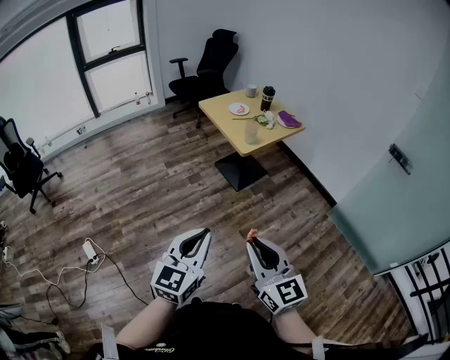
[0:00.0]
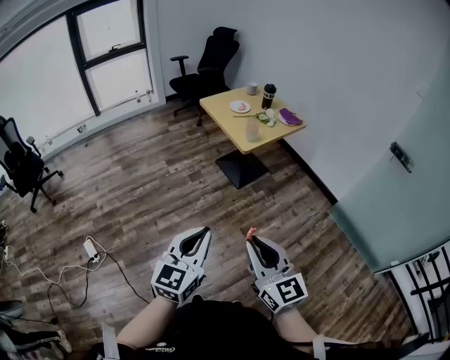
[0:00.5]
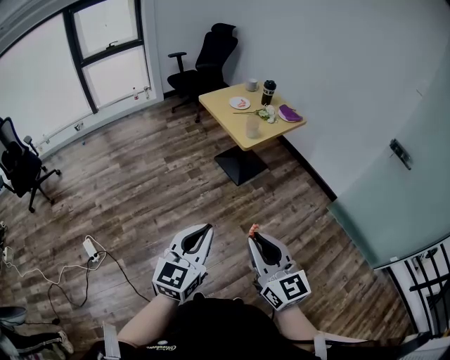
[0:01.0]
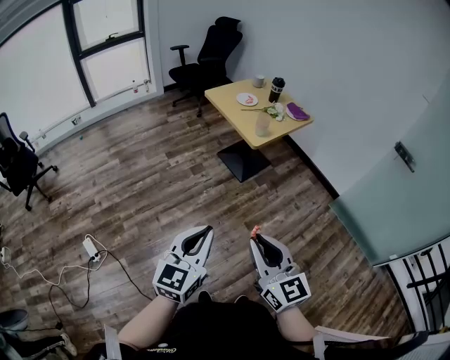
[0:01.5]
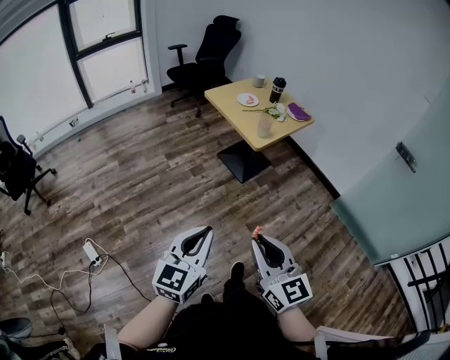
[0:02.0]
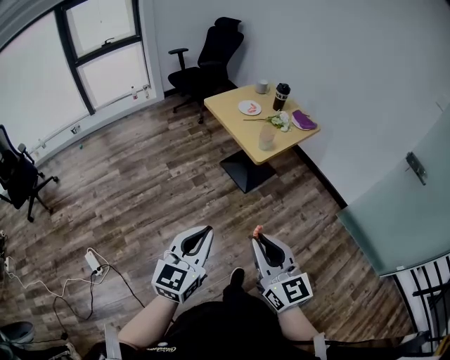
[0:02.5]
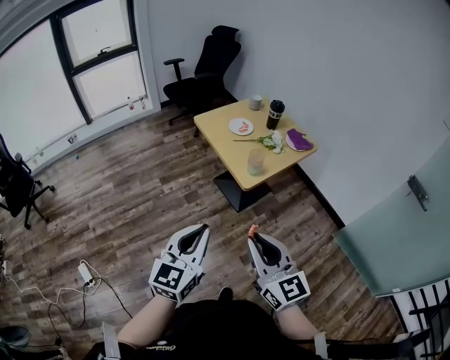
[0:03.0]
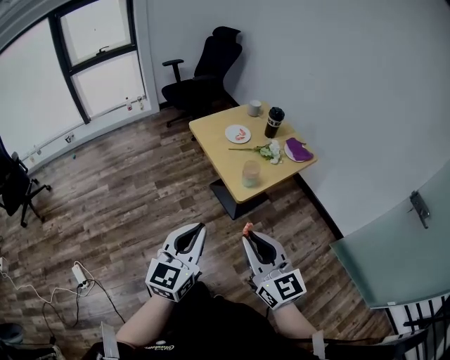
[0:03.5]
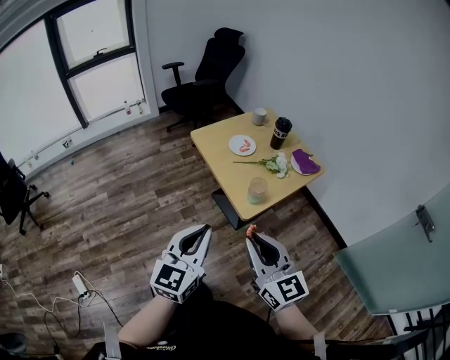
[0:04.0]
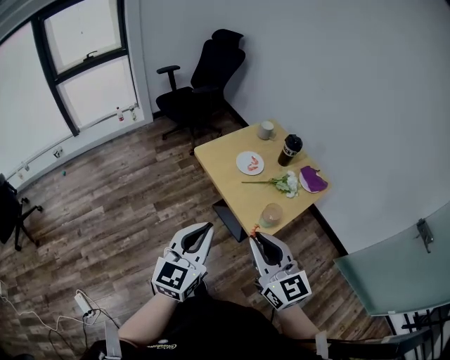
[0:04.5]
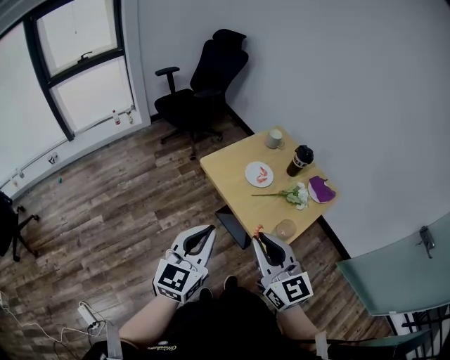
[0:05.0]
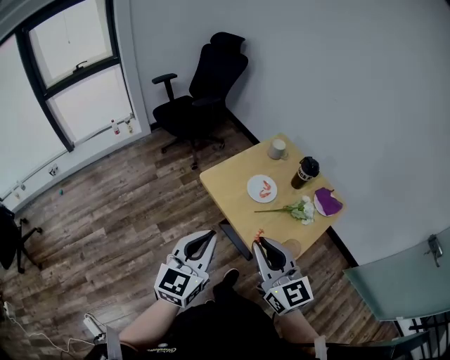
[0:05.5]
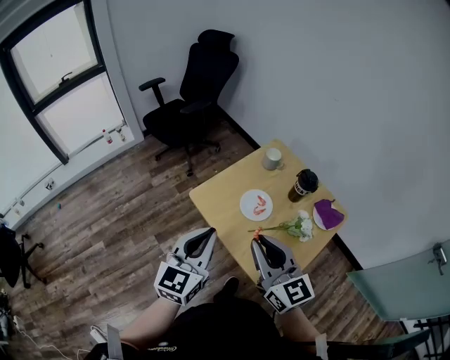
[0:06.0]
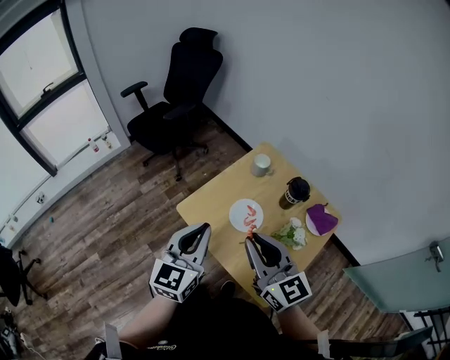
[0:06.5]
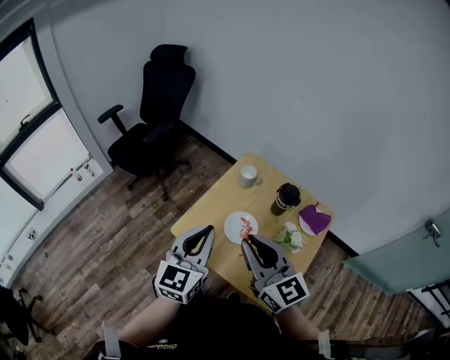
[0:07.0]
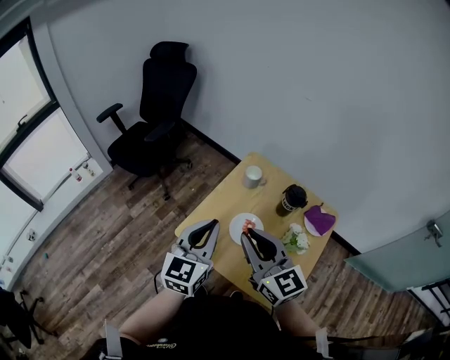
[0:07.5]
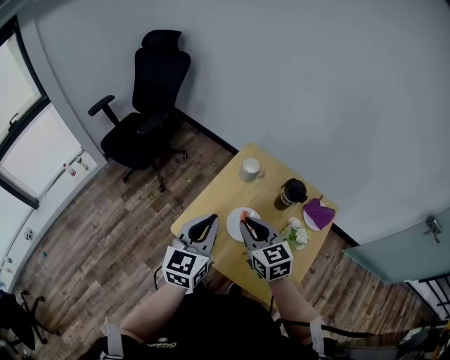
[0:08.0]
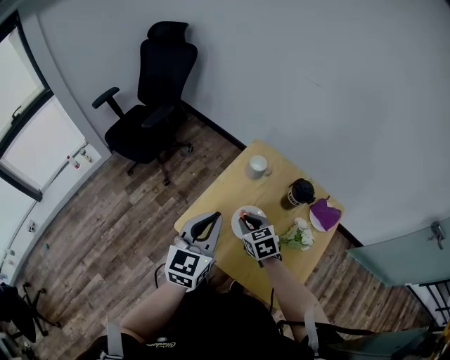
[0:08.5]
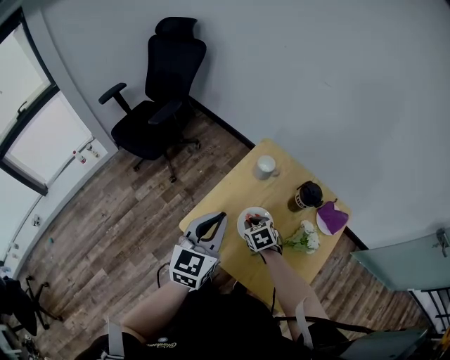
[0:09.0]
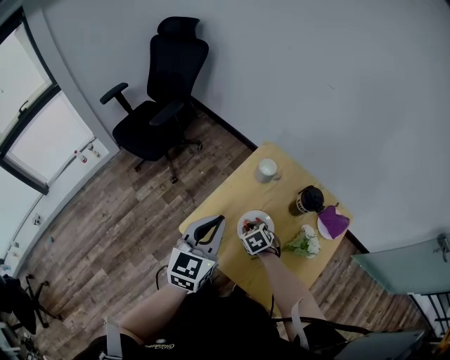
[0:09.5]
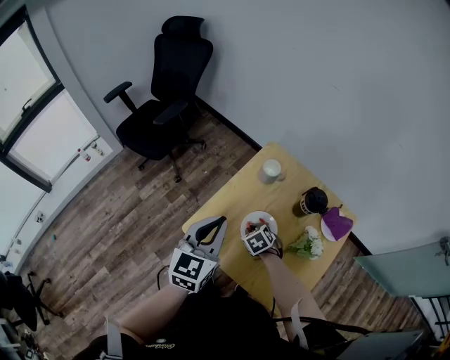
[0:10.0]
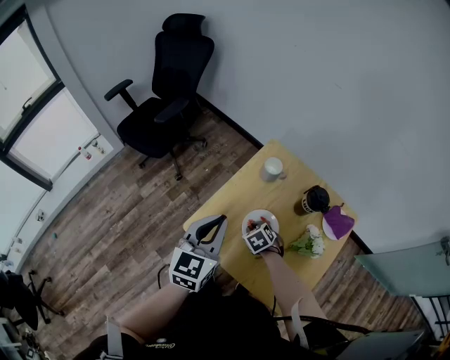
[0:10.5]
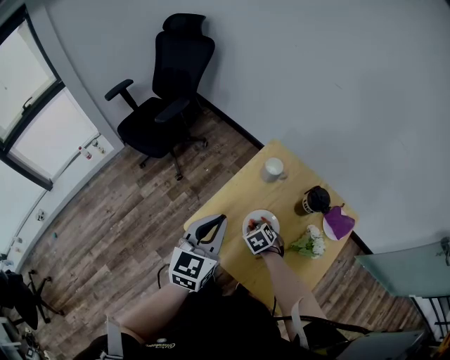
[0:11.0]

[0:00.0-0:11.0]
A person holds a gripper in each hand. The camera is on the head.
0:00.0 to 0:02.0: Both grippers travel together to the left, about 10 cm.
0:02.0 to 0:03.5: The right gripper is displaced forward by about 30 cm, while the left gripper travels forward and to the right by roughly 30 cm.
0:03.5 to 0:05.5: Both grippers travel together forward, some 35 cm.
0:05.5 to 0:07.5: The grippers both shift forward by approximately 30 cm.
0:07.5 to 0:09.0: The right gripper moves downward, roughly 30 cm, and points its fingers some 50 degrees further downward. Meanwhile the left gripper changes place by about 5 cm.
0:09.0 to 0:11.0: The grippers move only a little.

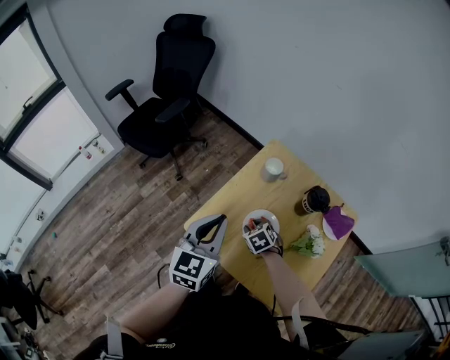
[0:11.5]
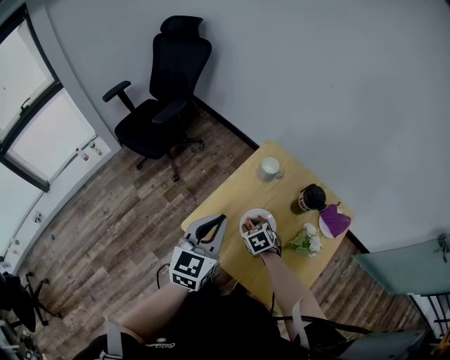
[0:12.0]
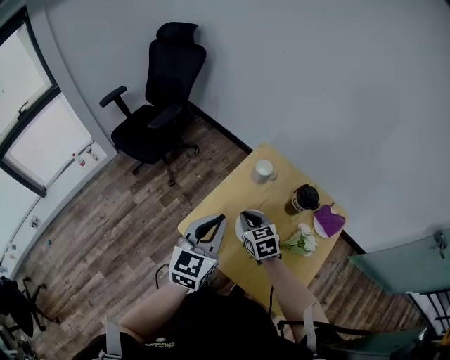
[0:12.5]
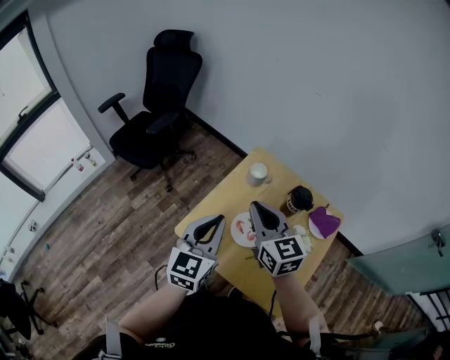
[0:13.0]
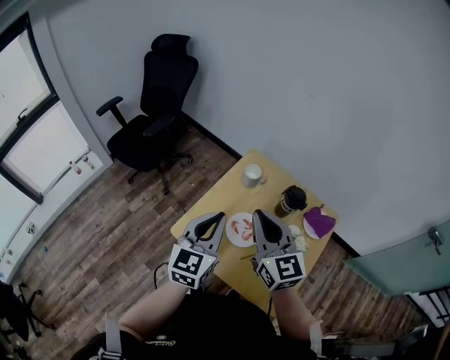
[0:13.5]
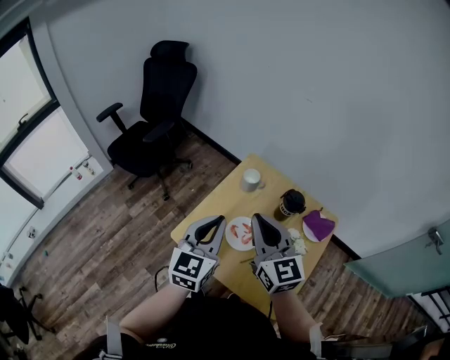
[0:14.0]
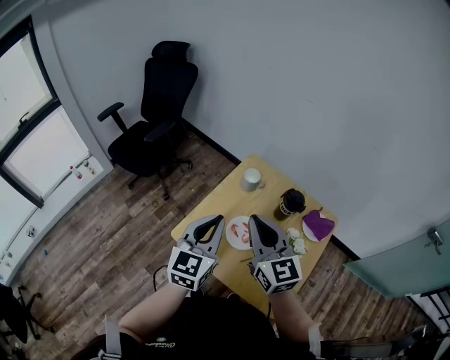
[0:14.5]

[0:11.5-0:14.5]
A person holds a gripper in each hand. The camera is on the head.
0:11.5 to 0:13.0: The right gripper travels upward by approximately 30 cm, angles its fingers upward, by approximately 50 degrees, and closes its fingers; the left gripper moves approximately 5 cm.
0:13.0 to 0:14.5: The right gripper shifts about 5 cm backward.

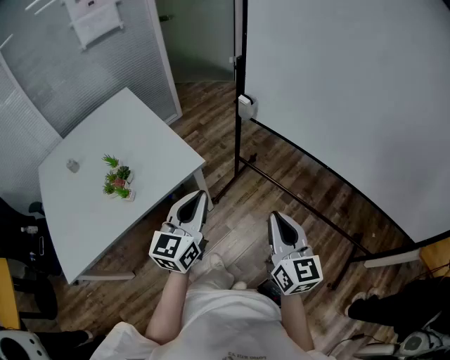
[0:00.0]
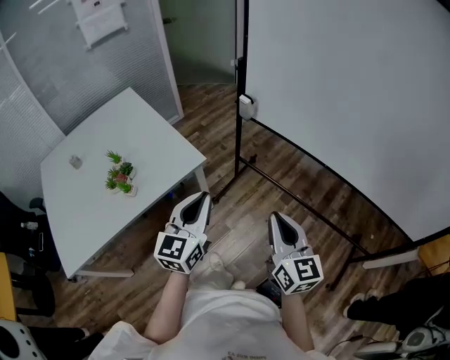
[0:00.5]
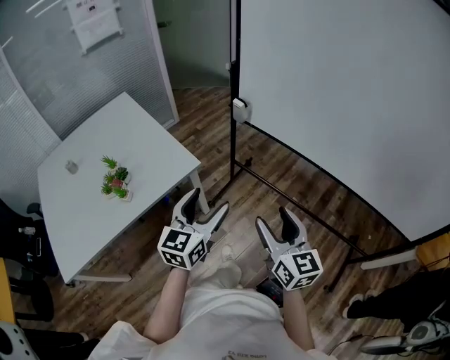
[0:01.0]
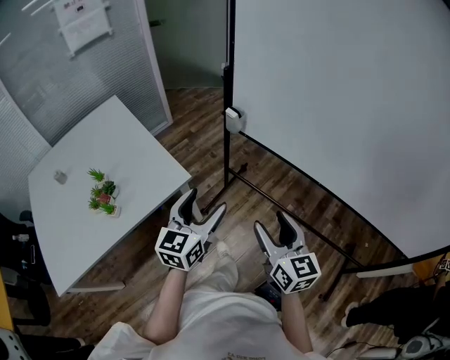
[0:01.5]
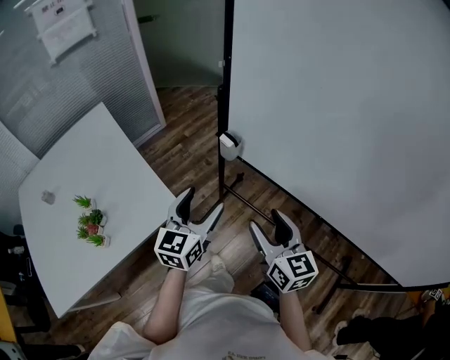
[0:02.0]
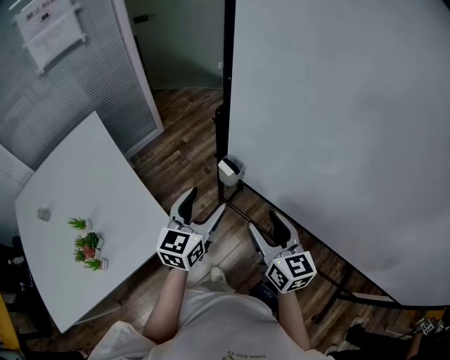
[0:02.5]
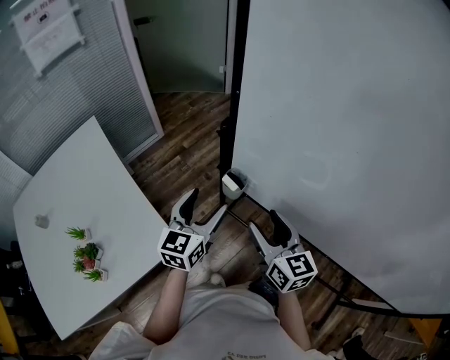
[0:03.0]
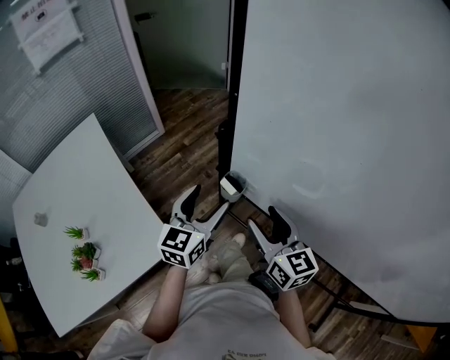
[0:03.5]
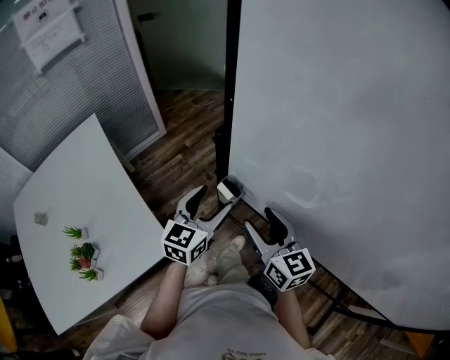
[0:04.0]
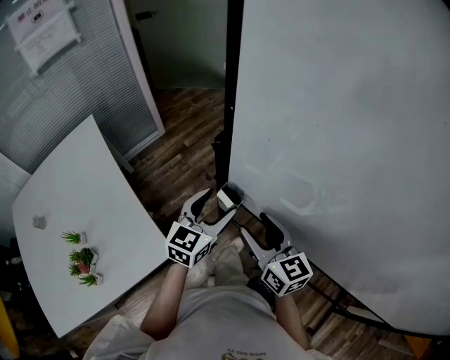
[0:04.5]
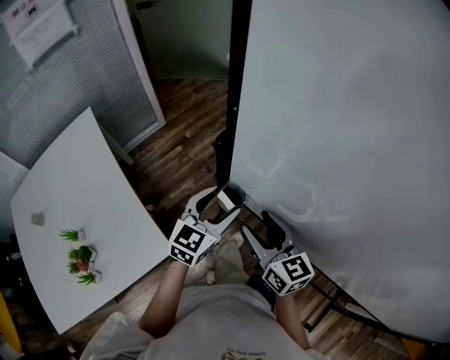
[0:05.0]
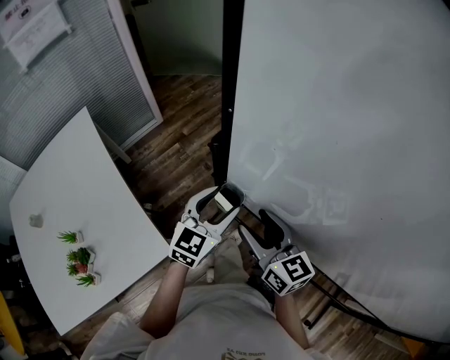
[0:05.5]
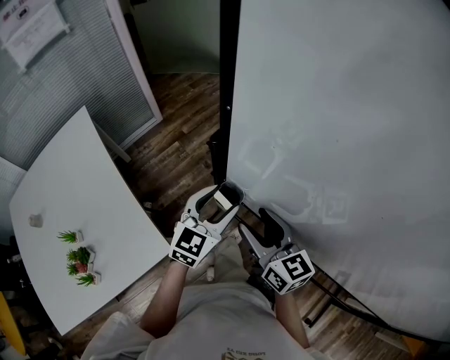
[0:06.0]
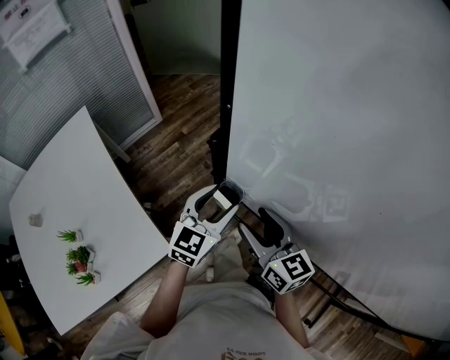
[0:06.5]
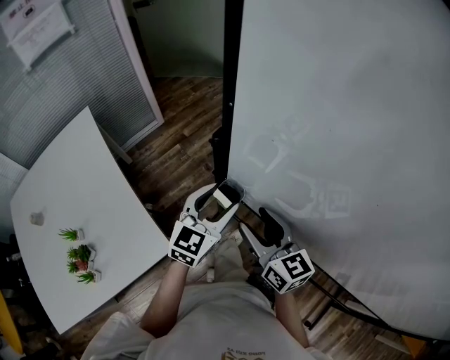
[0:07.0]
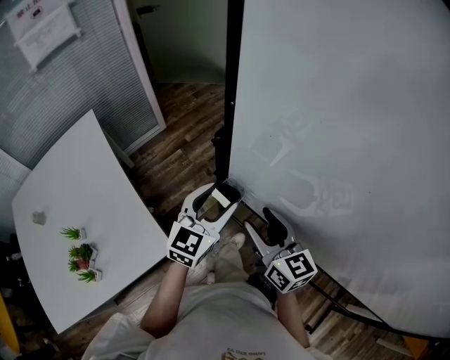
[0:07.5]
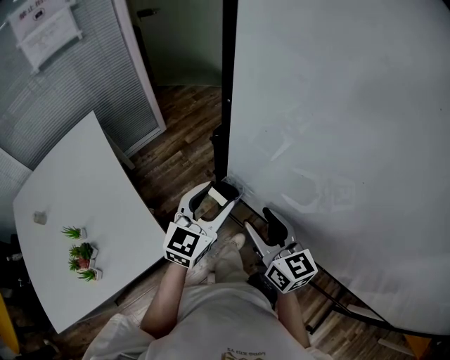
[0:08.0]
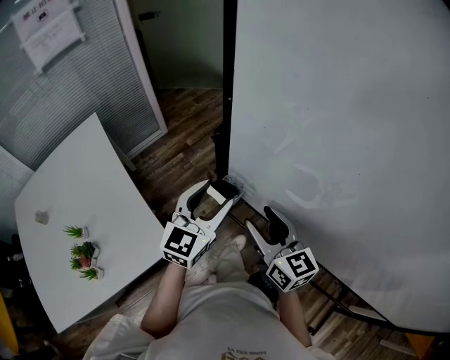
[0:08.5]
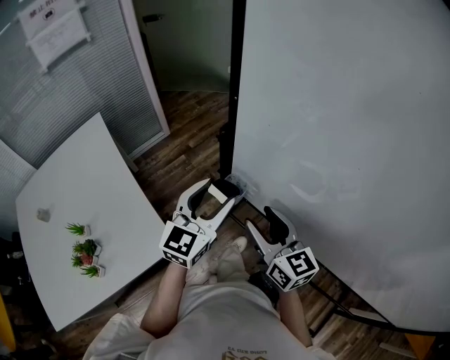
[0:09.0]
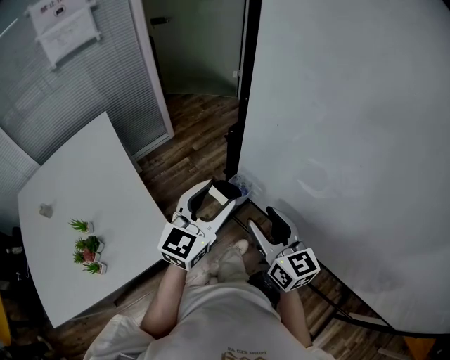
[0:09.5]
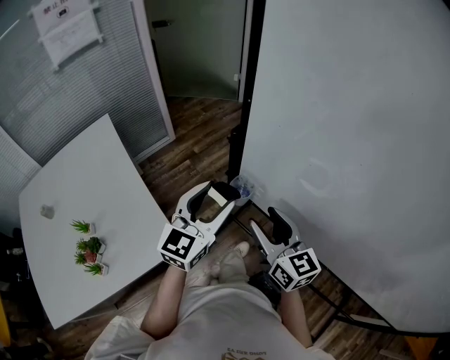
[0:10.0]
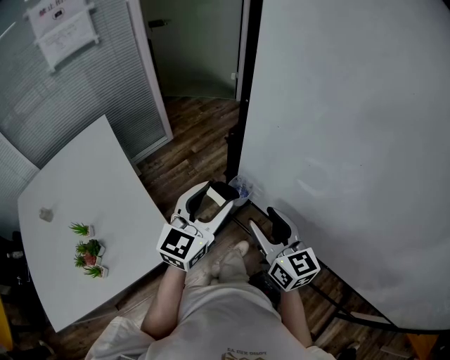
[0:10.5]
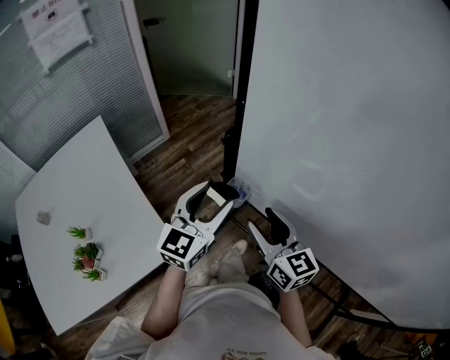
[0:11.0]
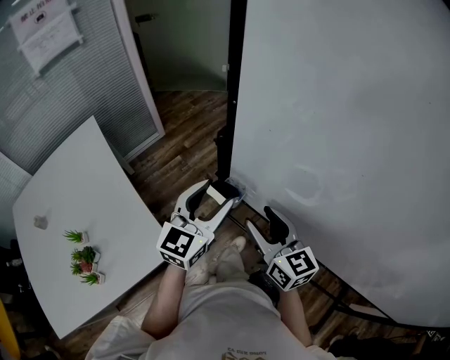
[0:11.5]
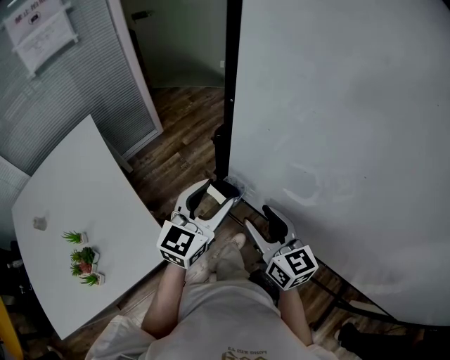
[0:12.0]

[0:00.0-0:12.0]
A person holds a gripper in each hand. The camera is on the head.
0:00.0 to 0:02.0: Both grippers move forward, approximately 25 cm. The right gripper opens; the left gripper opens.
0:02.0 to 0:04.0: The two grippers go about 20 cm forward.
0:04.0 to 0:06.0: The left gripper moves approximately 5 cm.
0:06.0 to 0:08.0: The left gripper moves upward, some 5 cm.
0:08.0 to 0:10.0: The left gripper shifts by roughly 5 cm.
0:10.0 to 0:12.0: The left gripper ends up some 5 cm from where it was.

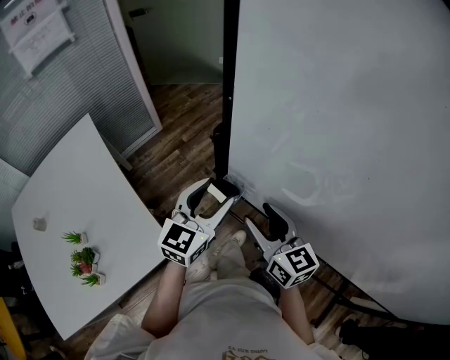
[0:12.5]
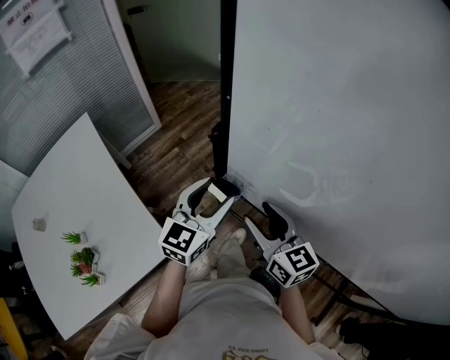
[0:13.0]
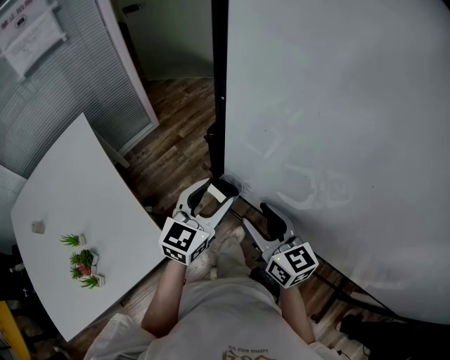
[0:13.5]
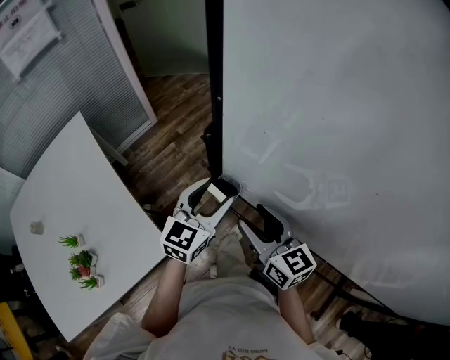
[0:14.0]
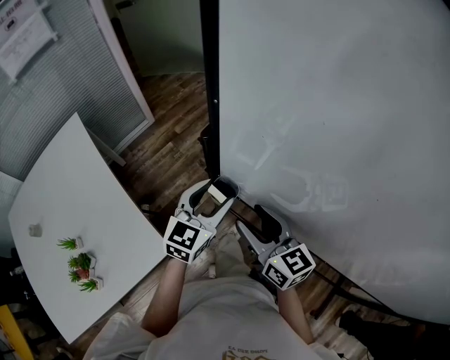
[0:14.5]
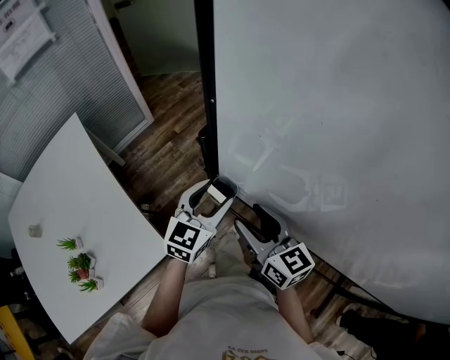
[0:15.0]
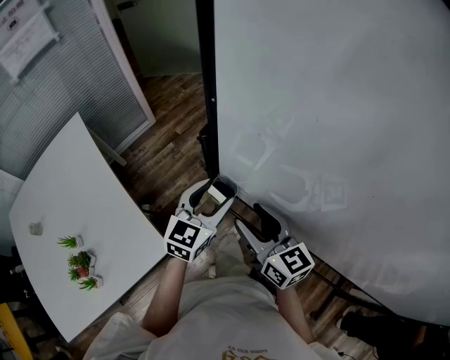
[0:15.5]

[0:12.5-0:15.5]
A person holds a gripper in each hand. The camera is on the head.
0:12.5 to 0:14.0: The grippers move only a little.
0:14.0 to 0:15.5: The grippers make only small movements.
